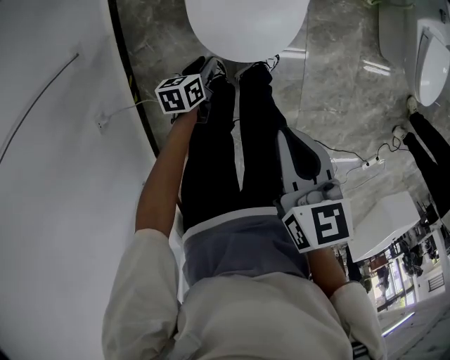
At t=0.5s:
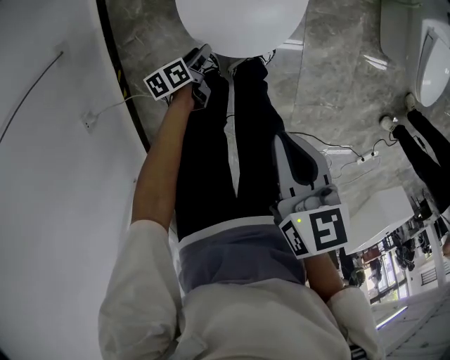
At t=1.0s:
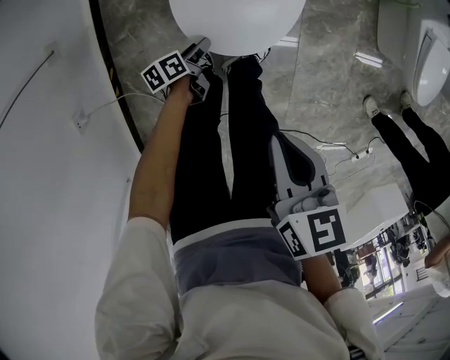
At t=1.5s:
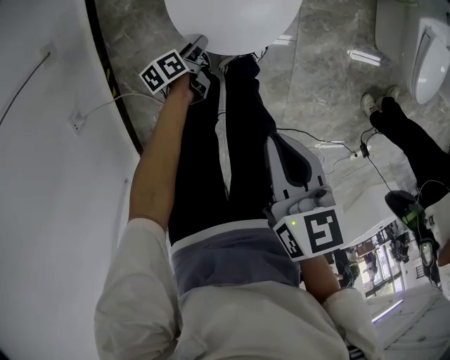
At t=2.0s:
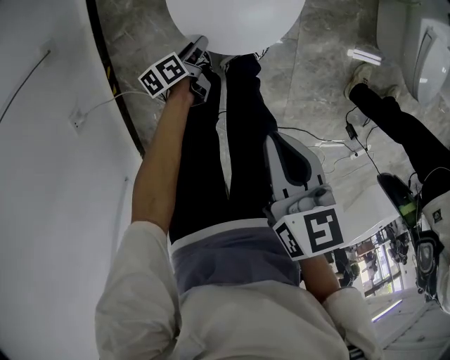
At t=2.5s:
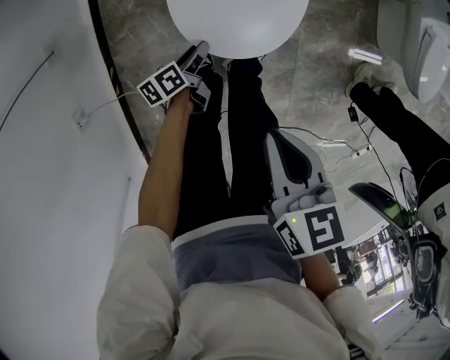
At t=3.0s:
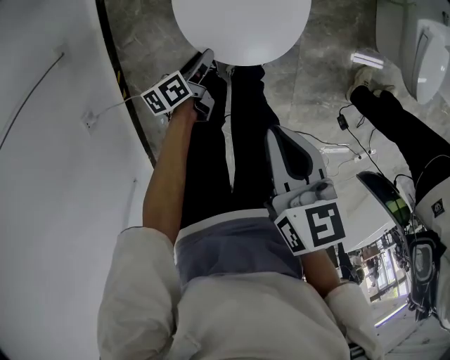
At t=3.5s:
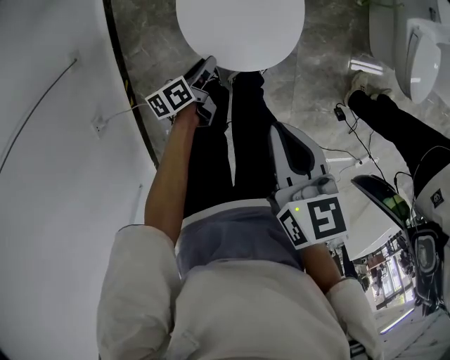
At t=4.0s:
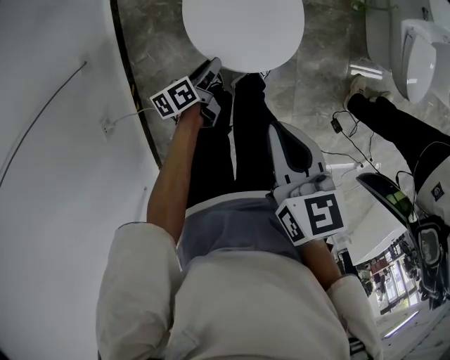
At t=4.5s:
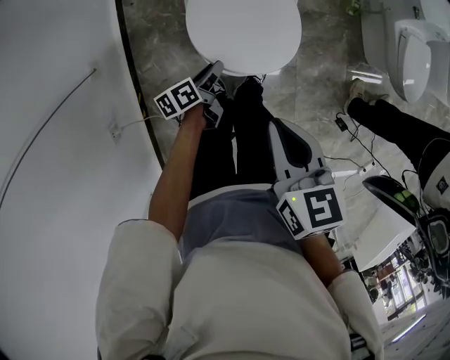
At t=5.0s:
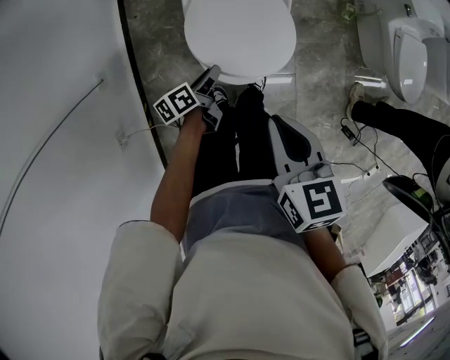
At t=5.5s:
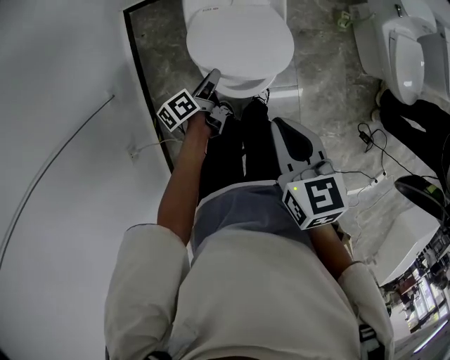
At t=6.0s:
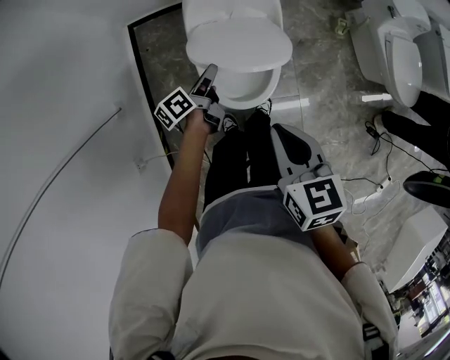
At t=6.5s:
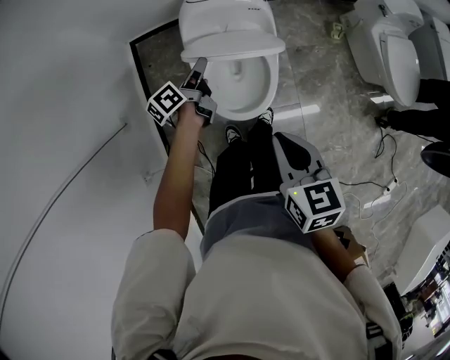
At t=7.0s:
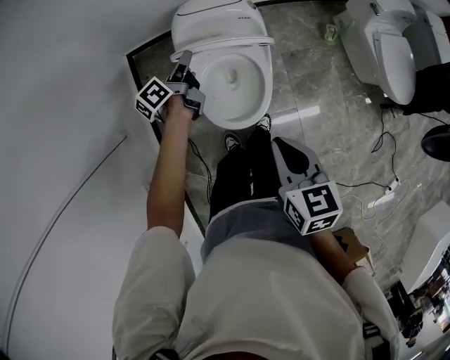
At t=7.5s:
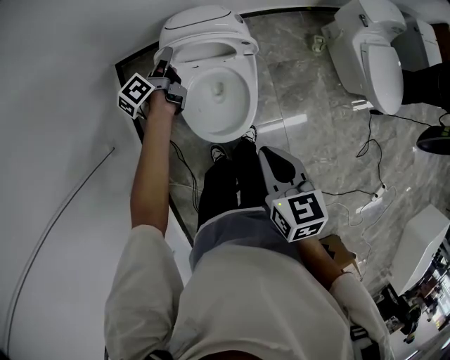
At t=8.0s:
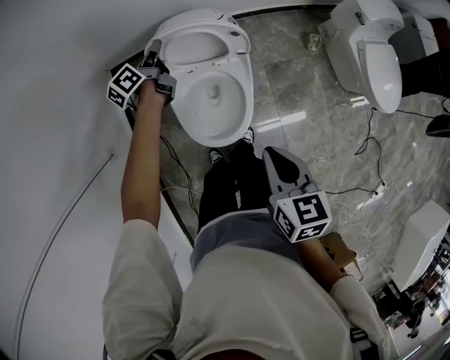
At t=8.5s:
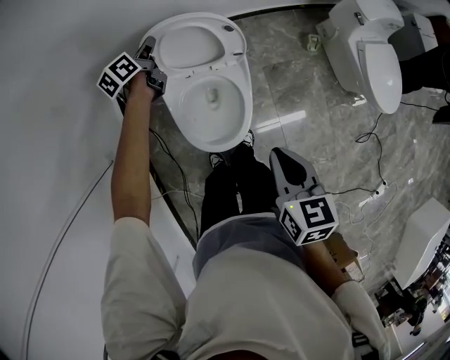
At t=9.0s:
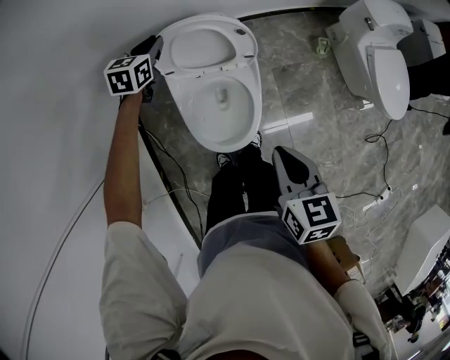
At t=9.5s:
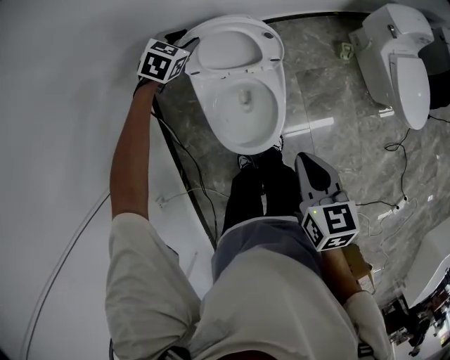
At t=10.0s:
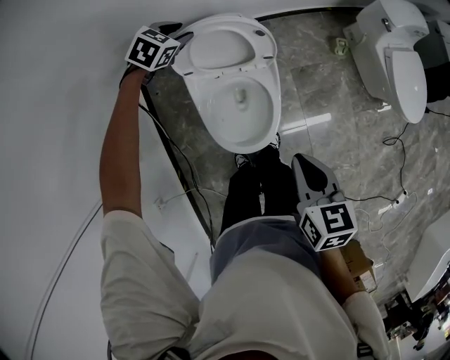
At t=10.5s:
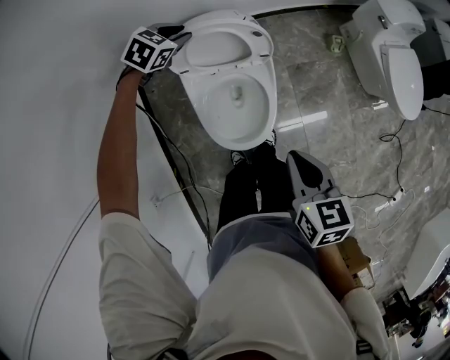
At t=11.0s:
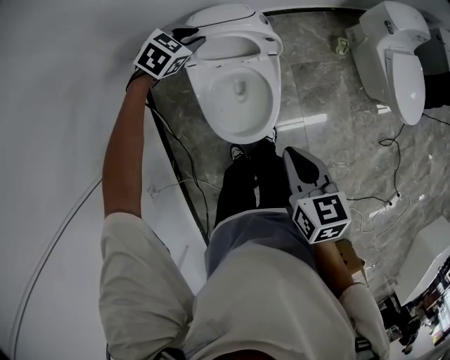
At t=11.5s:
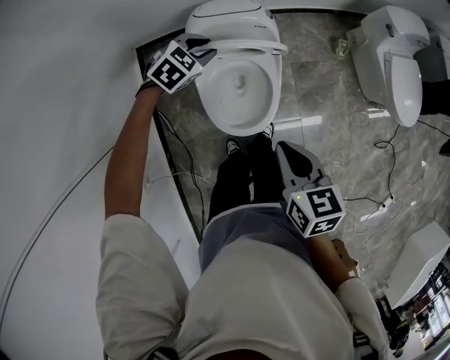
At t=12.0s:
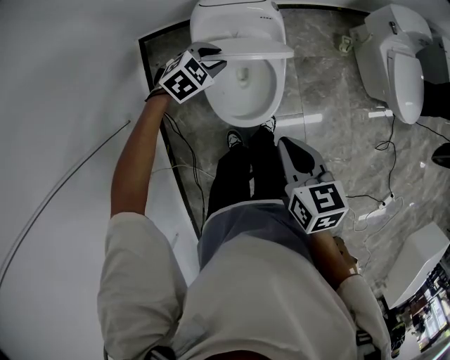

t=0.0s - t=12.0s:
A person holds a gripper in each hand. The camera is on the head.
t=0.0s - t=2.0s: The right gripper shifts by roughly 5 cm. The left gripper moves downward, about 10 cm, and swivels approximately 30 degrees.
t=2.0s - t=4.0s: The left gripper heads upward, covering about 15 cm; the right gripper shifts some 10 cm upward.
t=4.0s - t=6.0s: The left gripper goes approximately 20 cm upward and forward. Meanwhile the right gripper shifts approximately 10 cm upward.
t=6.0s - t=8.0s: The right gripper travels to the right and forward by approximately 10 cm; the left gripper heads forward, covering some 25 cm.
t=8.0s - t=10.0s: The left gripper shifts some 5 cm forward, and rolls clockwise, seen from behind, by about 80 degrees.
t=10.0s - t=12.0s: The left gripper shifts roughly 20 cm backward. Meanwhile the right gripper is displaced backward and to the left by roughly 10 cm.

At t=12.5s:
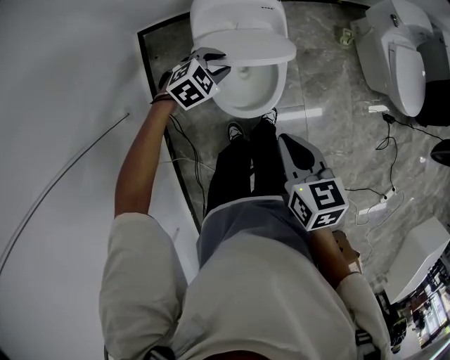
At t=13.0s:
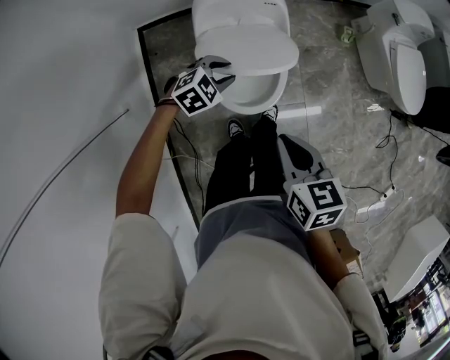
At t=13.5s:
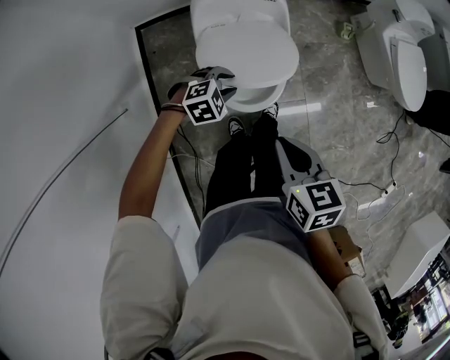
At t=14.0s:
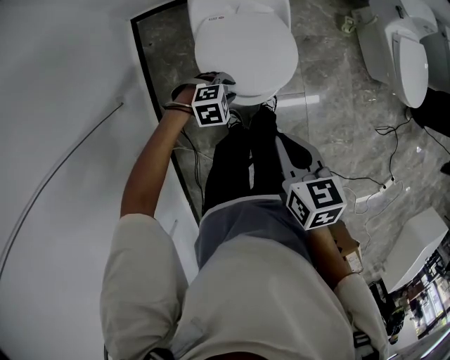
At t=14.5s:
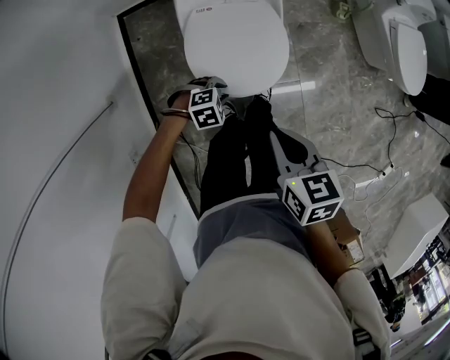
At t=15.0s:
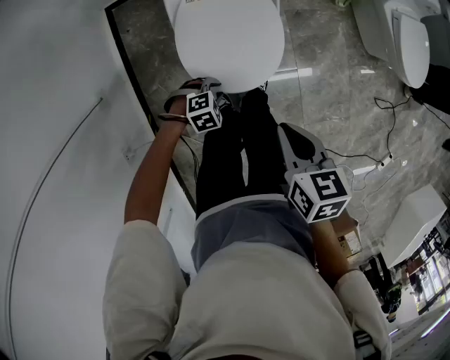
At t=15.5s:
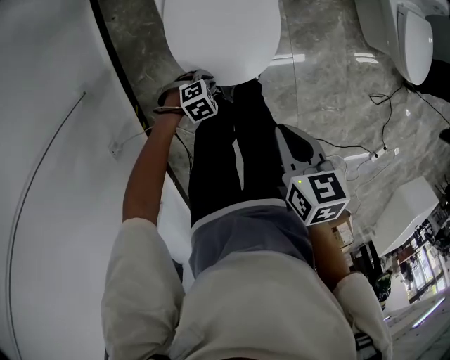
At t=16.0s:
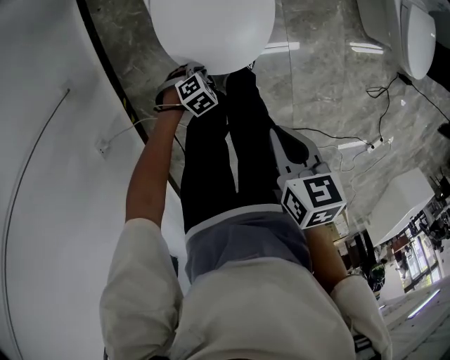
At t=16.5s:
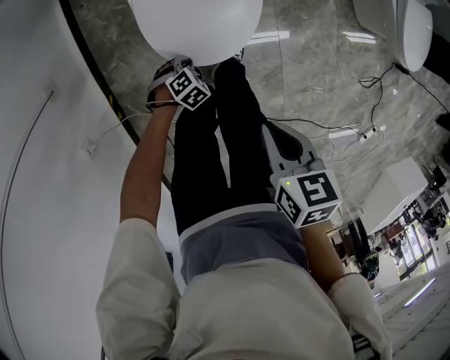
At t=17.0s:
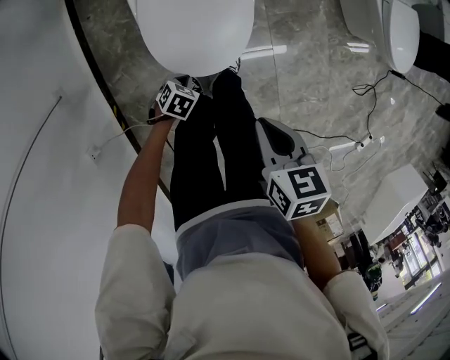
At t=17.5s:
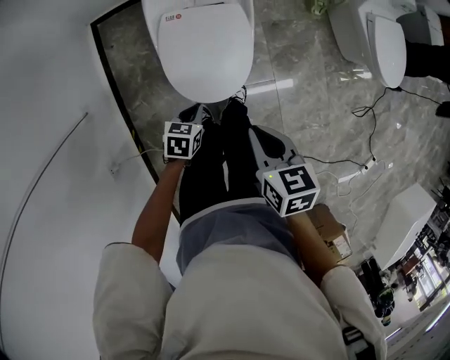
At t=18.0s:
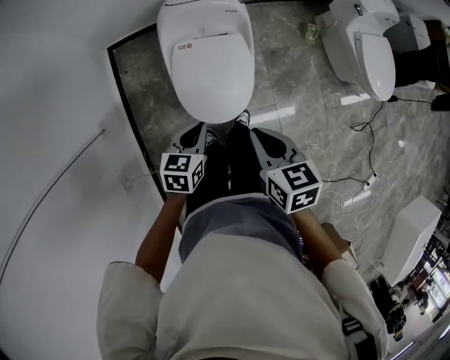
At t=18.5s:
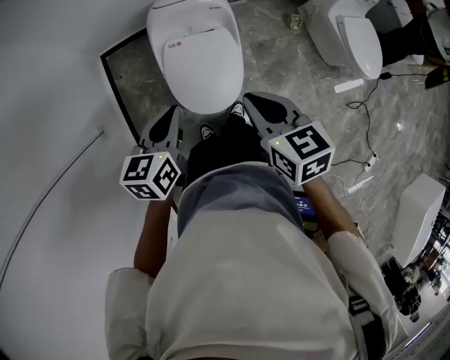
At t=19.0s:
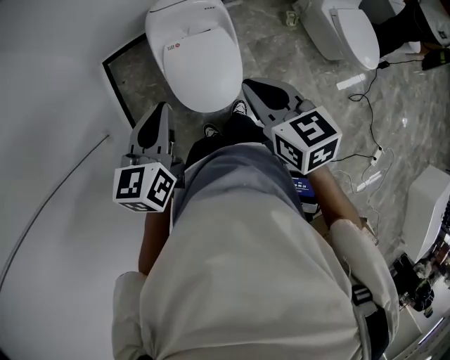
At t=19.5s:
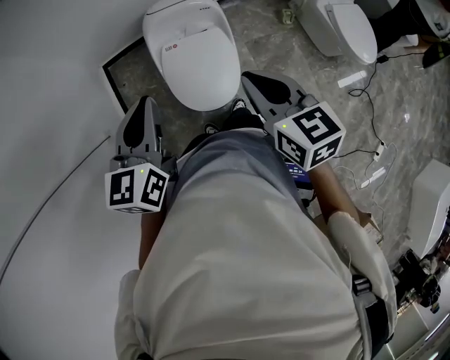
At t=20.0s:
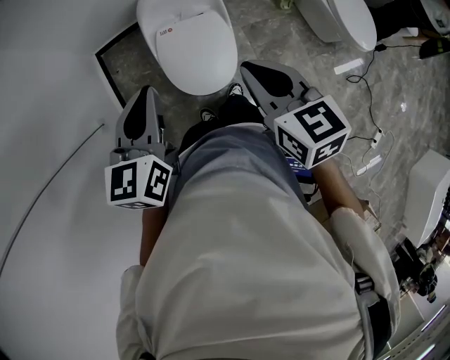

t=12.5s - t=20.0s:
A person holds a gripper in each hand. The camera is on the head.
t=12.5s - t=14.5s: The right gripper shifts about 5 cm downward. Meanwhile the left gripper shifts by approximately 20 cm, and swivels some 20 degrees.
t=14.5s - t=16.5s: The left gripper travels downward by some 20 cm, and swivels some 30 degrees; the right gripper shifts roughly 10 cm downward.
t=16.5s - t=18.0s: The left gripper goes roughly 40 cm upward, and tips its fingers upward by roughly 40 degrees. The right gripper goes approximately 15 cm upward, and turns by some 20 degrees.
t=18.0s - t=20.0s: The right gripper shifts about 15 cm upward. The left gripper shifts roughly 25 cm upward, and swivels approximately 30 degrees.

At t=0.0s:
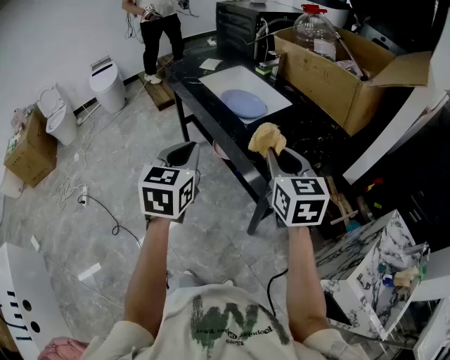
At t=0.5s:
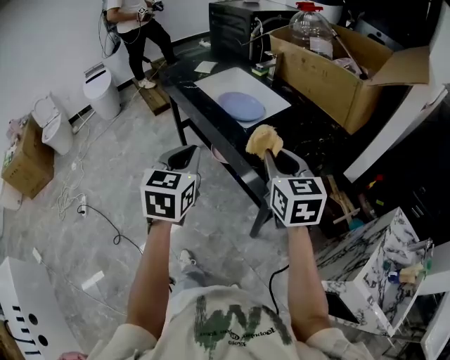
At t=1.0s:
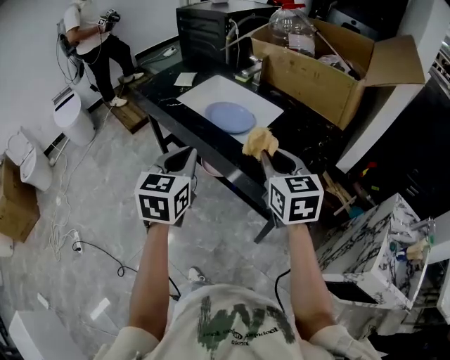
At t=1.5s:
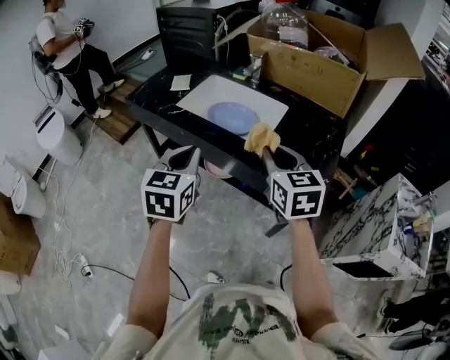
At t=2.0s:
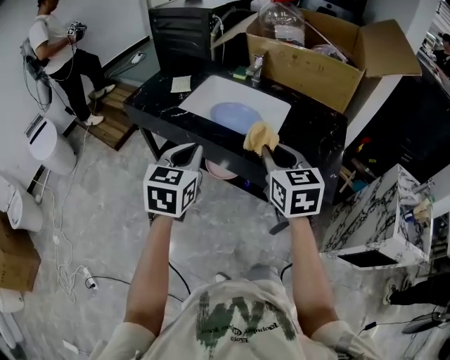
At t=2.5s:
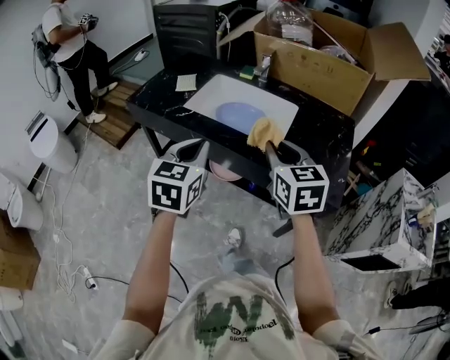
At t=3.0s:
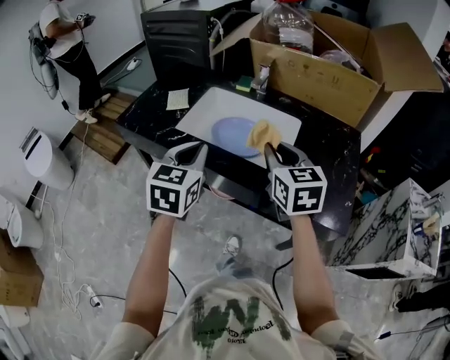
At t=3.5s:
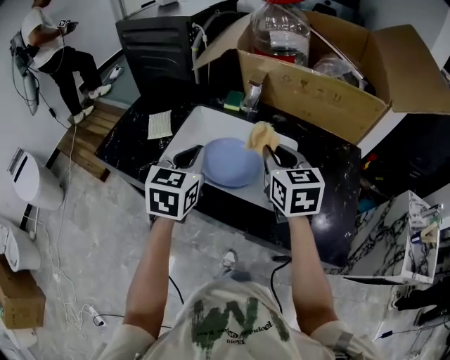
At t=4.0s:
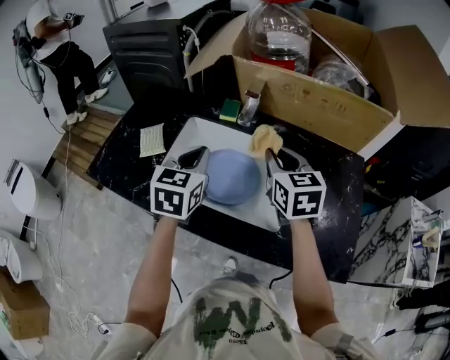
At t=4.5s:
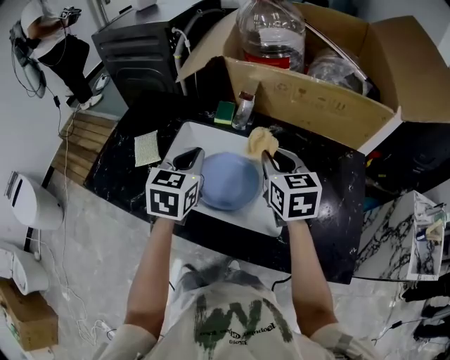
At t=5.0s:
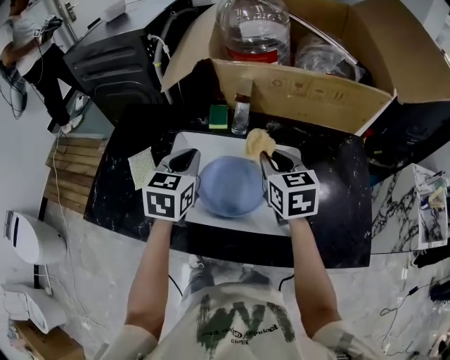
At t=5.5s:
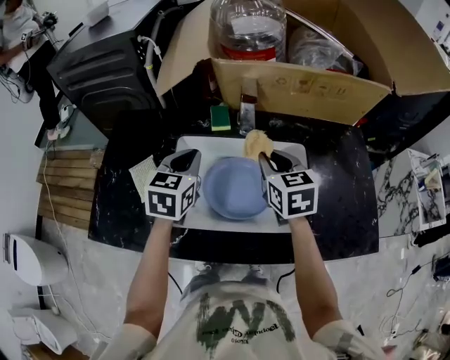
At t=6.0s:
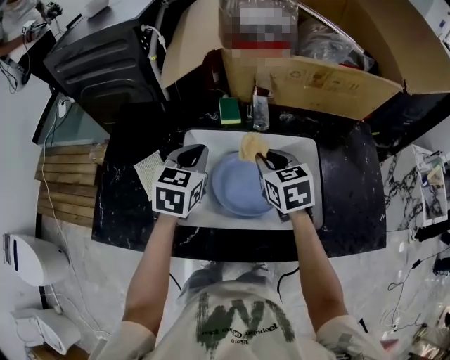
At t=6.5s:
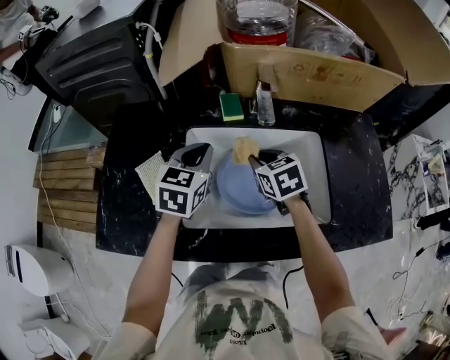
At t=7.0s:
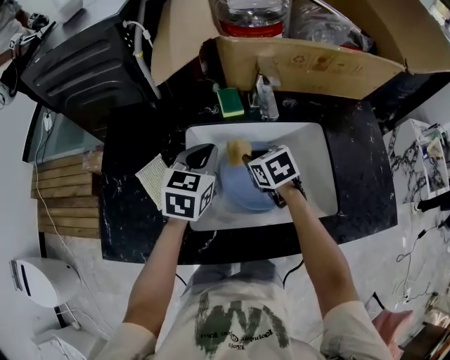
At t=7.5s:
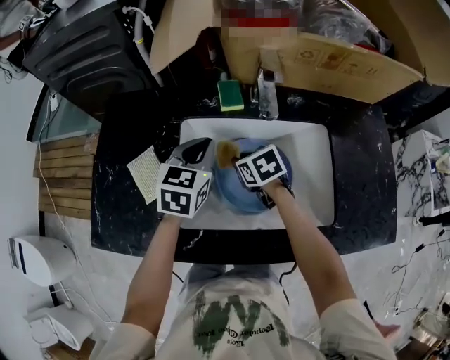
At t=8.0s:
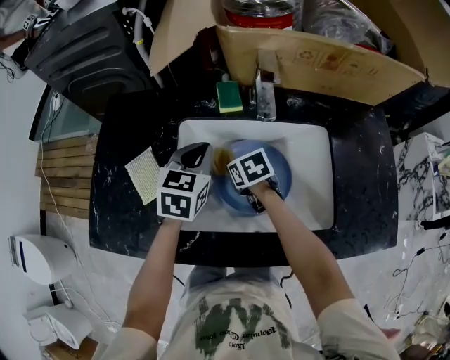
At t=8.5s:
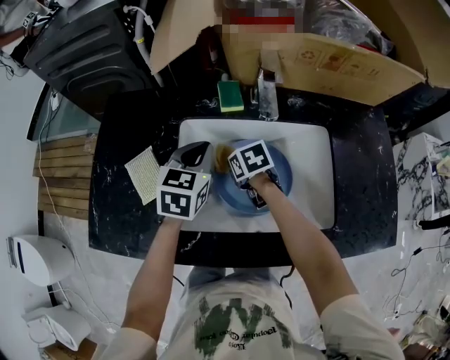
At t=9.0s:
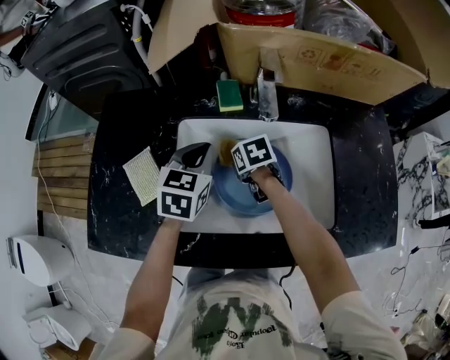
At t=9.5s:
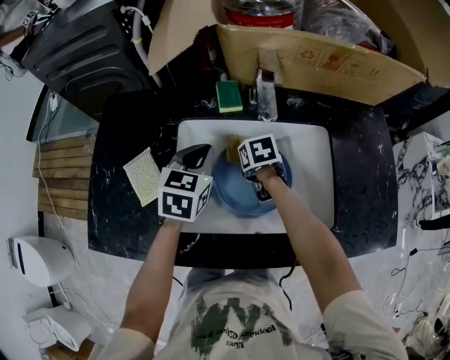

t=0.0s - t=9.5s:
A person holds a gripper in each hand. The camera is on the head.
t=0.0s - t=2.0s: The left gripper moves some 25 cm, and turns by about 30 degrees; the right gripper moves some 25 cm, and swivels about 20 degrees.
t=2.0s - t=4.0s: Both grippers travel together forward, roughly 30 cm.
t=4.0s - t=5.5s: The left gripper moves forward and to the left, some 10 cm; the right gripper moves about 10 cm.
t=5.5s - t=7.5s: The left gripper travels downward by some 5 cm. Meanwhile the right gripper is displaced downward and to the left by roughly 20 cm, and turns by roughly 30 degrees.
t=7.5s - t=9.5s: The right gripper changes place by roughly 5 cm.
